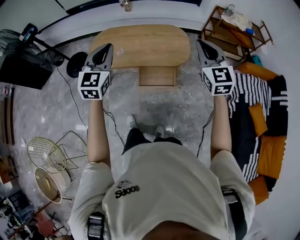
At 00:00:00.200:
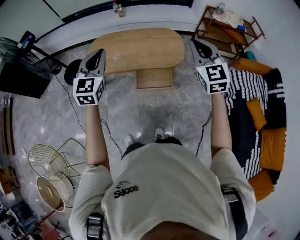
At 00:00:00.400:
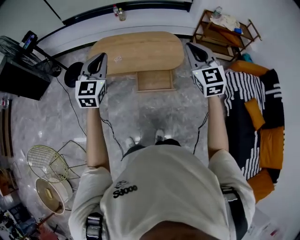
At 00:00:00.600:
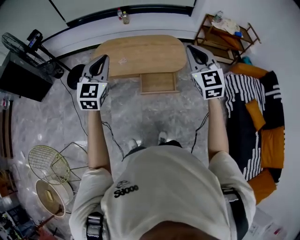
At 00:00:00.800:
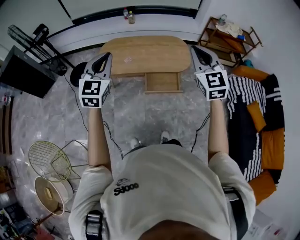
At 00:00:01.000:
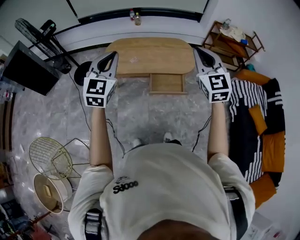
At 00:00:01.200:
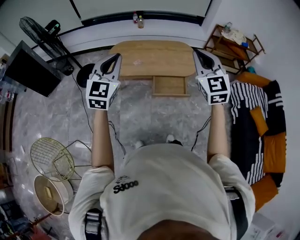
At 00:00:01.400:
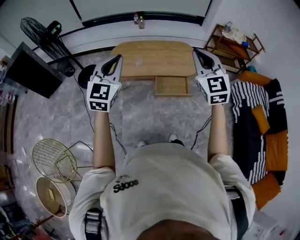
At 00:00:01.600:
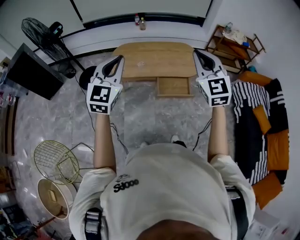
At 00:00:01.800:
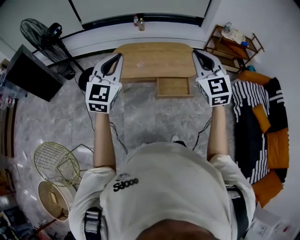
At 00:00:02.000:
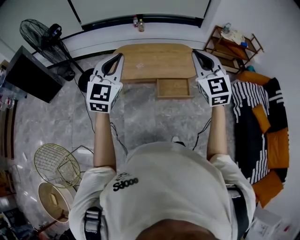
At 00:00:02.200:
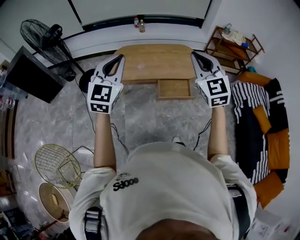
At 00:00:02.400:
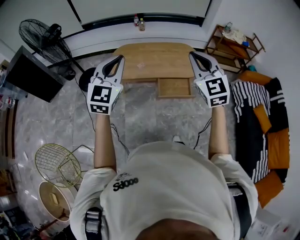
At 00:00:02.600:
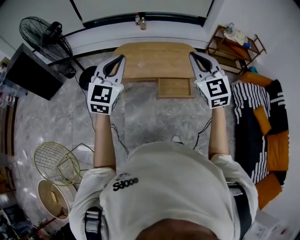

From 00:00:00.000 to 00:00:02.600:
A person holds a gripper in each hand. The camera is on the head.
From 00:00:00.000 to 00:00:01.200: The left gripper shifts about 25 cm backward, to the left and upward, while the right gripper goes some 25 cm to the left, backward and upward.
From 00:00:01.200 to 00:00:02.600: The right gripper shifts approximately 5 cm to the left.

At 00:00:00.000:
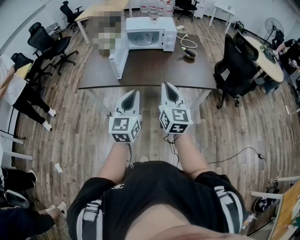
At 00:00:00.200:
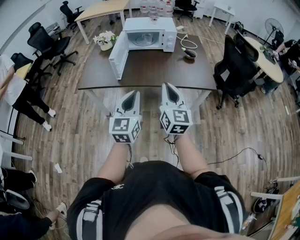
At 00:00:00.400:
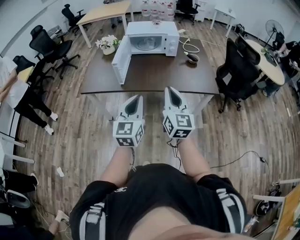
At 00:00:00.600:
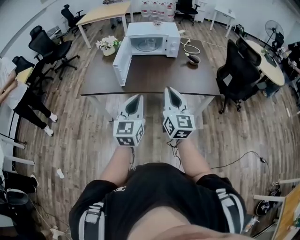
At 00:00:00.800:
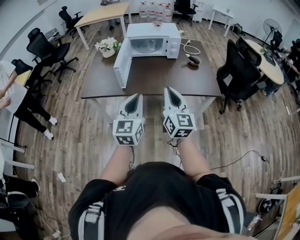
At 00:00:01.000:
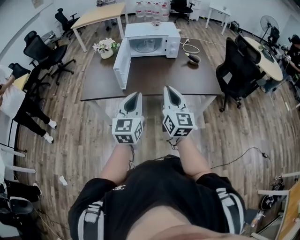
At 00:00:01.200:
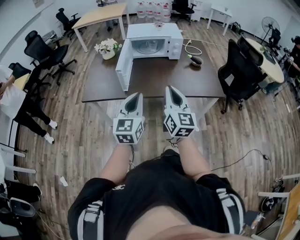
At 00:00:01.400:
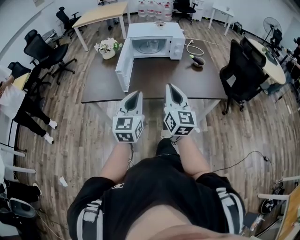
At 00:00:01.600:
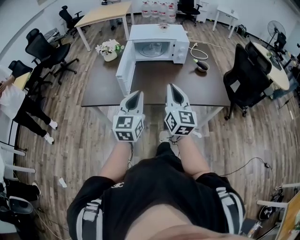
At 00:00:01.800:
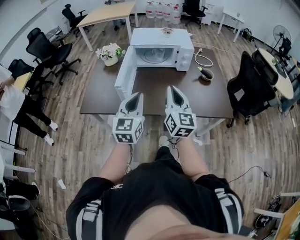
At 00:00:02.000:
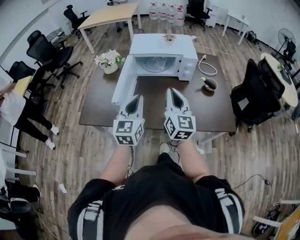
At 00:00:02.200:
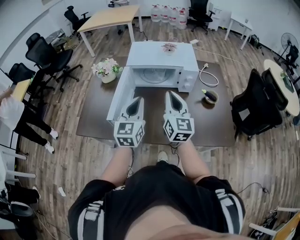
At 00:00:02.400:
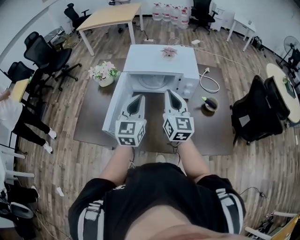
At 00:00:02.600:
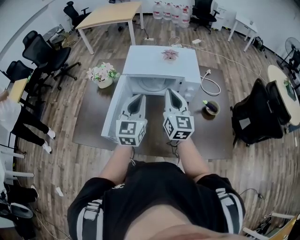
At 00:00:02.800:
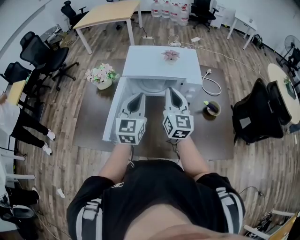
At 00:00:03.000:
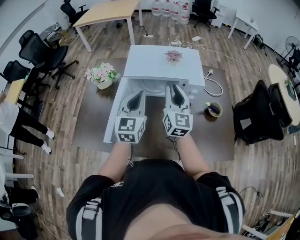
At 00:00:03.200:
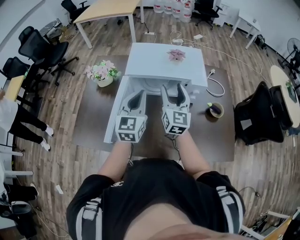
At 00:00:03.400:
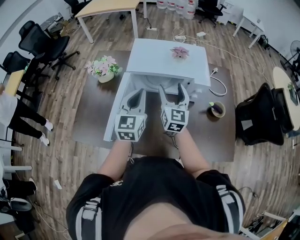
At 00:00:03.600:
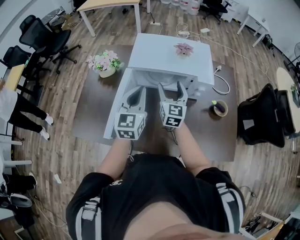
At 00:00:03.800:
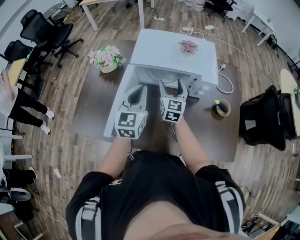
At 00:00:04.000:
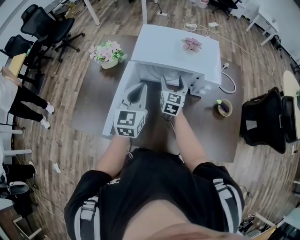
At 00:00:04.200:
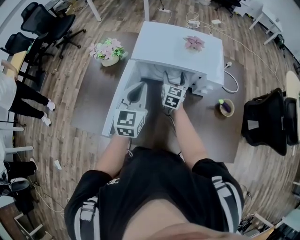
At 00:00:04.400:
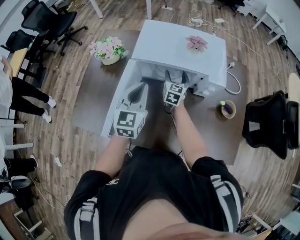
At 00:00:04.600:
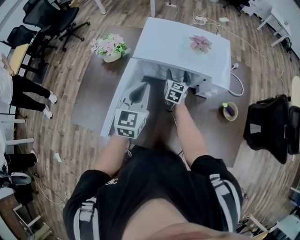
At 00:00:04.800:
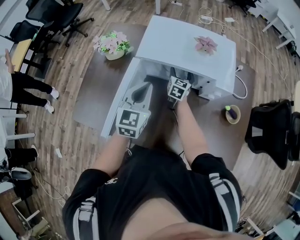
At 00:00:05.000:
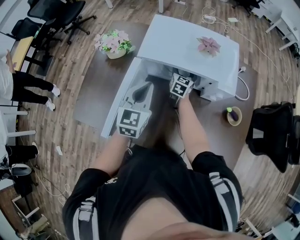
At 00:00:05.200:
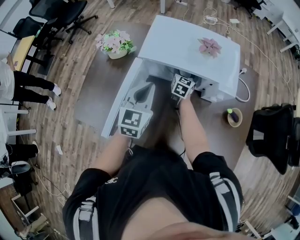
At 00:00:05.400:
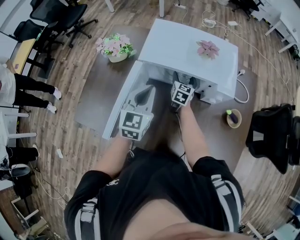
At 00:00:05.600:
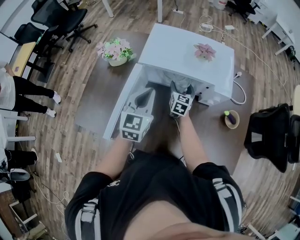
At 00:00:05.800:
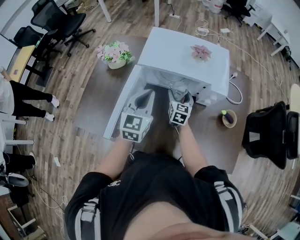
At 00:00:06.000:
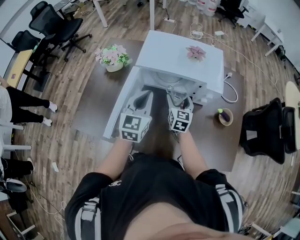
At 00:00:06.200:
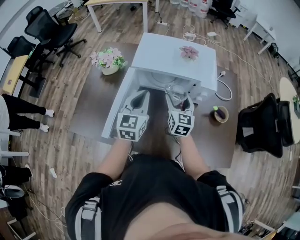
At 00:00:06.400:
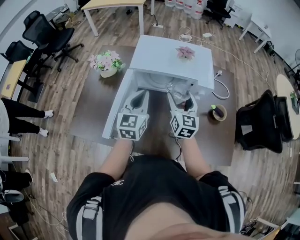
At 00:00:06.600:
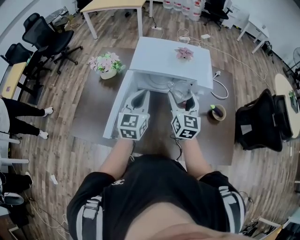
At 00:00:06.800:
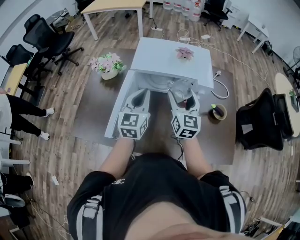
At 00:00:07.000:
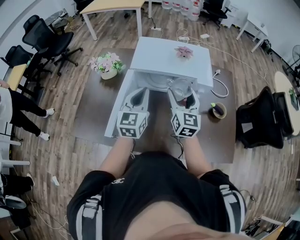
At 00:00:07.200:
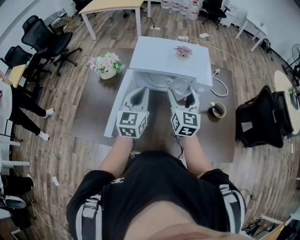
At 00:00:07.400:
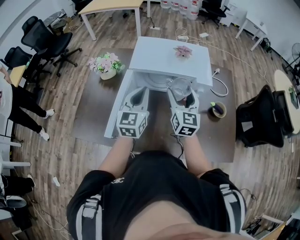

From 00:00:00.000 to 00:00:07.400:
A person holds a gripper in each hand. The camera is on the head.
From 00:00:00.000 to 00:00:01.400: Both grippers travel together forward and to the left, some 15 cm.
From 00:00:01.400 to 00:00:03.000: The two grippers travel together, forward, about 50 cm.
From 00:00:03.000 to 00:00:04.400: The right gripper goes roughly 30 cm downward and forward, changes its angle by approximately 30 degrees, and opens its fingers. The left gripper moves downward, approximately 5 cm.
From 00:00:04.400 to 00:00:06.000: The right gripper is displaced backward by some 10 cm.
From 00:00:06.000 to 00:00:07.400: The right gripper shifts some 15 cm upward and backward.
